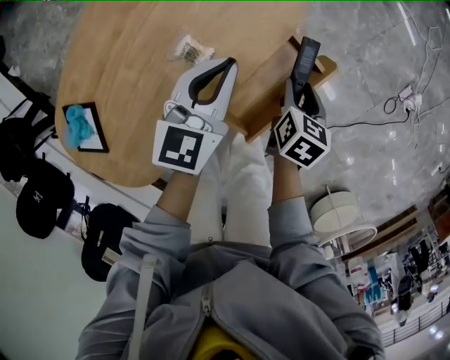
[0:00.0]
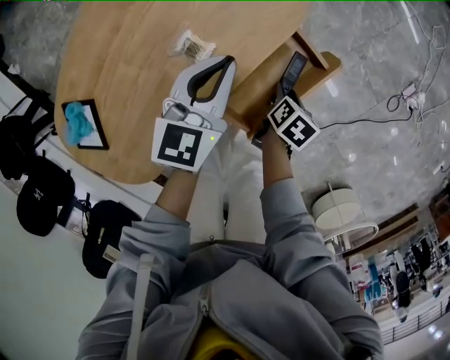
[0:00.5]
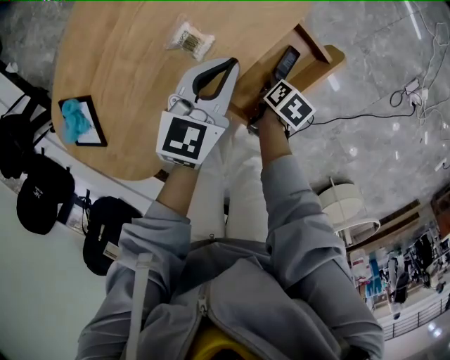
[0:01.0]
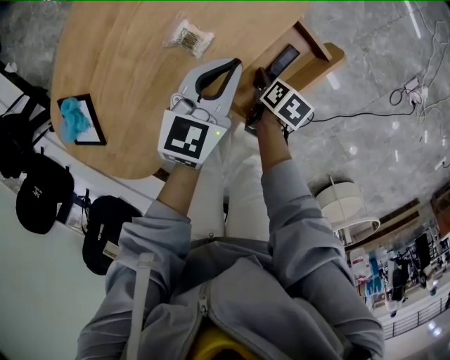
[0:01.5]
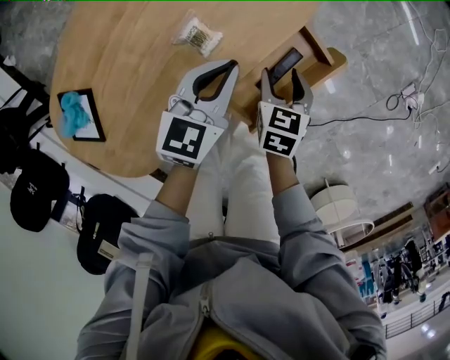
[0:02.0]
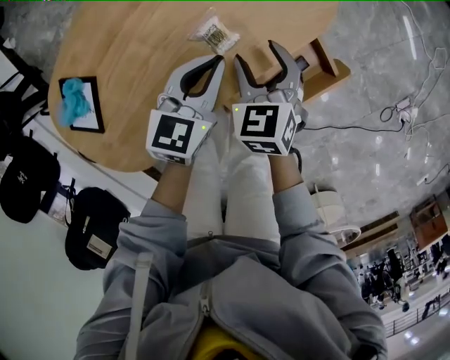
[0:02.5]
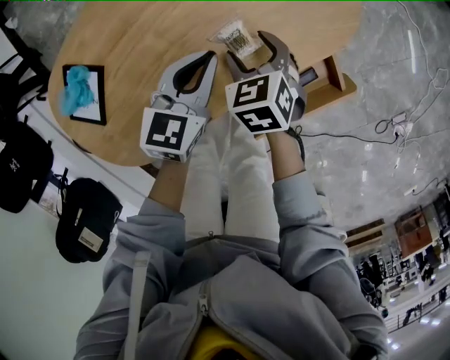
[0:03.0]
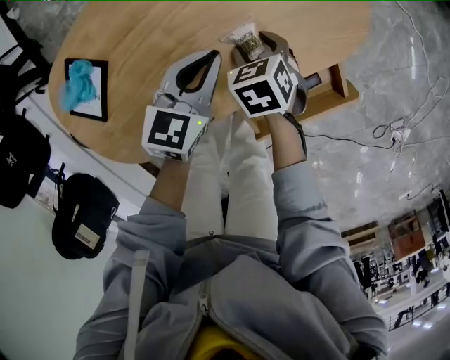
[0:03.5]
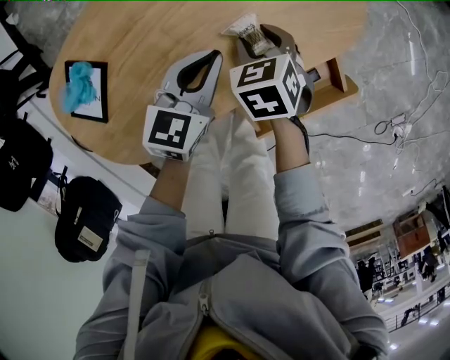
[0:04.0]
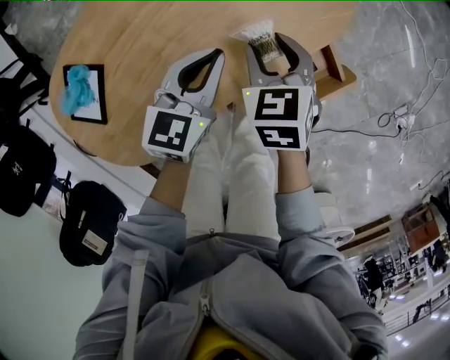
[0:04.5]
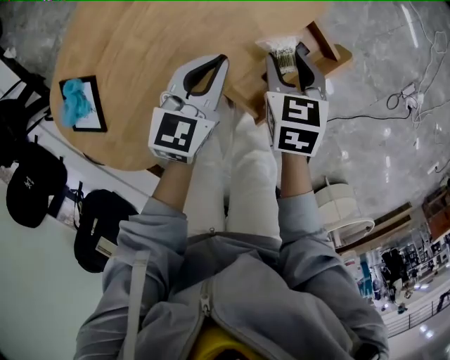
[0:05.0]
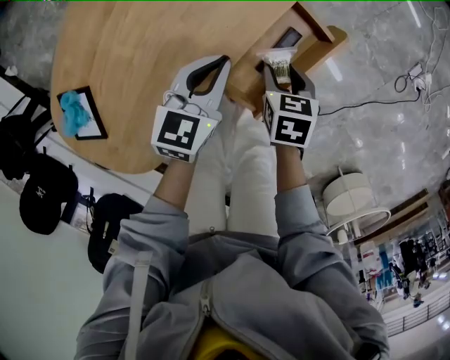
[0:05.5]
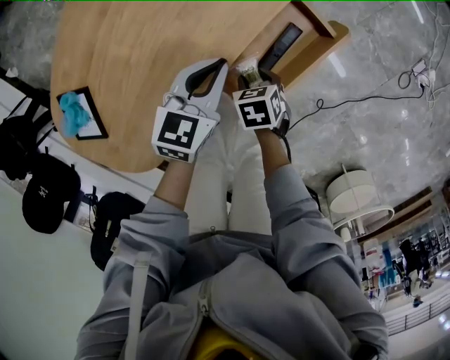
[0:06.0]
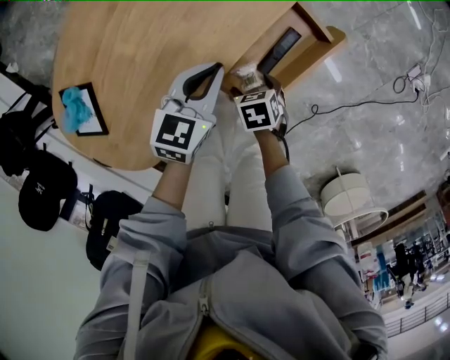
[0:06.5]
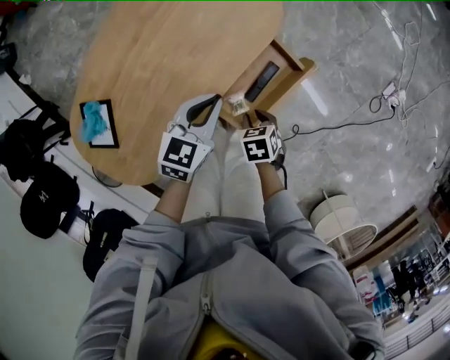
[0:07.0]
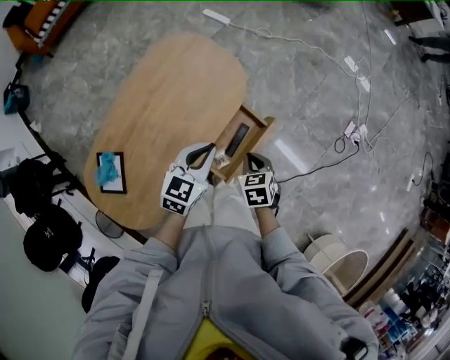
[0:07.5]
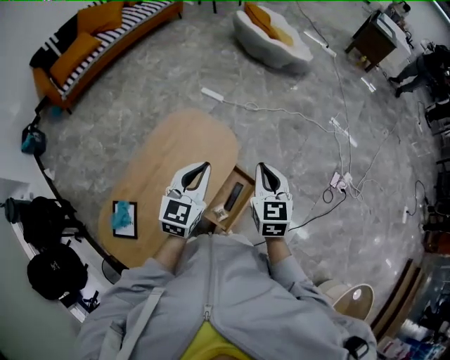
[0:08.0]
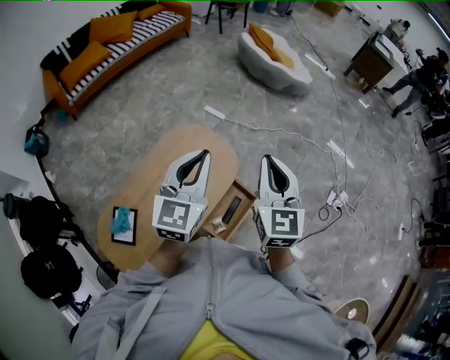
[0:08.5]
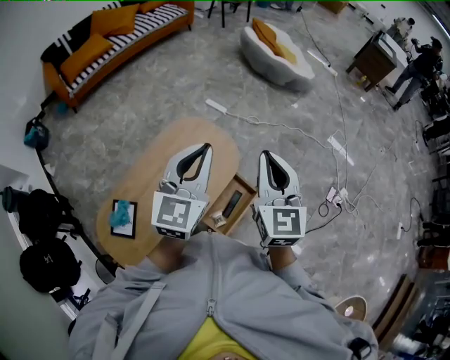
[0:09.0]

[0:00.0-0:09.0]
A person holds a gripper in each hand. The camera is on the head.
0:00.0 to 0:02.0: The right gripper goes downward and returns, about 15 cm each way, and turns by about 20 degrees; the left gripper shifts by about 5 cm.
0:02.0 to 0:04.5: The left gripper shifts by about 10 cm. Meanwhile the right gripper goes up and down, approximately 10 cm each way, reversing 2 times, and rotates about 30 degrees.
0:04.5 to 0:07.0: The left gripper ends up approximately 15 cm from where it was, while the right gripper moves roughly 15 cm downward and comes back, rotates approximately 30 degrees, and opens and closes again.
0:07.0 to 0:09.0: The grippers both shift upward by some 60 cm. The right gripper tilts its fingers approximately 70 degrees upward. Meanwhile the left gripper tilts its fingers some 30 degrees upward.

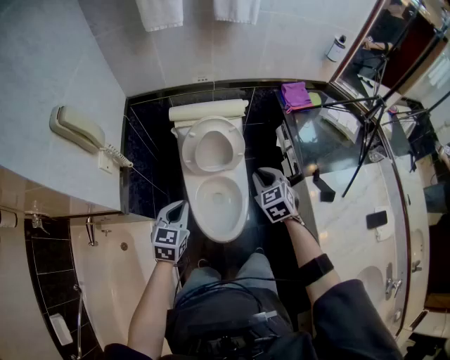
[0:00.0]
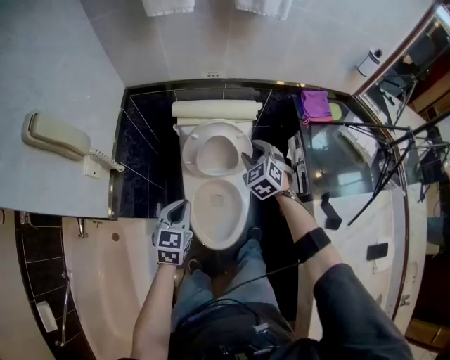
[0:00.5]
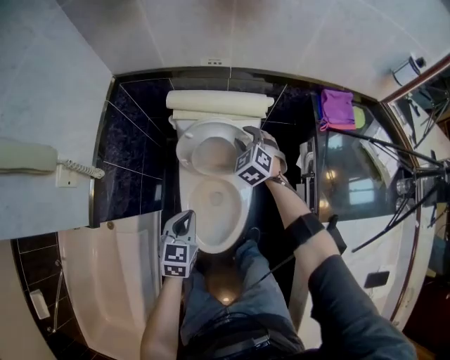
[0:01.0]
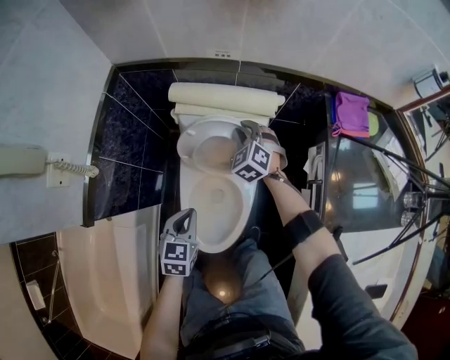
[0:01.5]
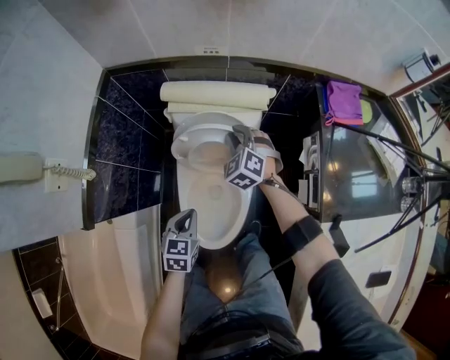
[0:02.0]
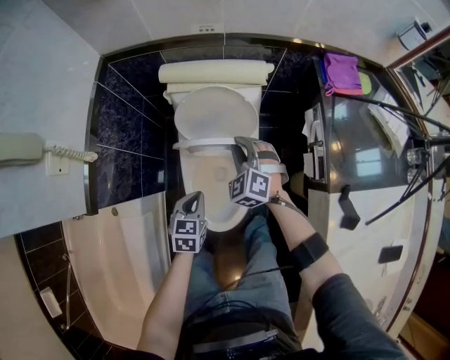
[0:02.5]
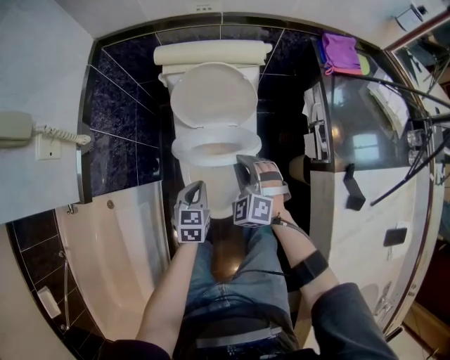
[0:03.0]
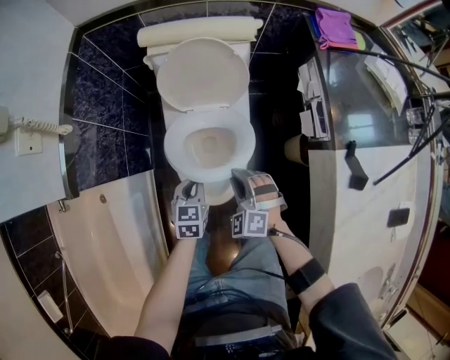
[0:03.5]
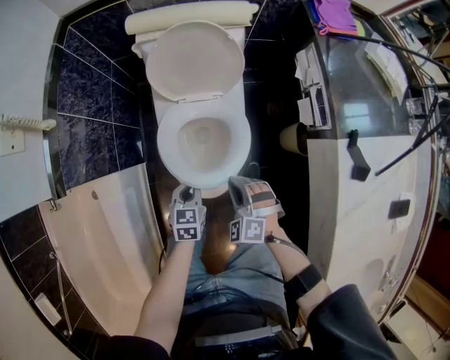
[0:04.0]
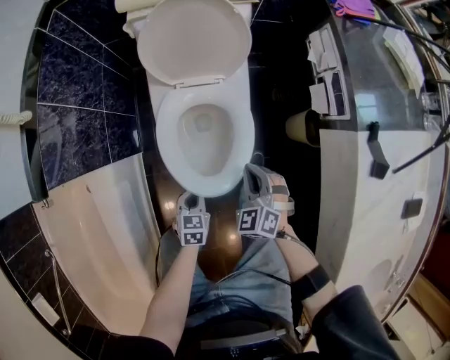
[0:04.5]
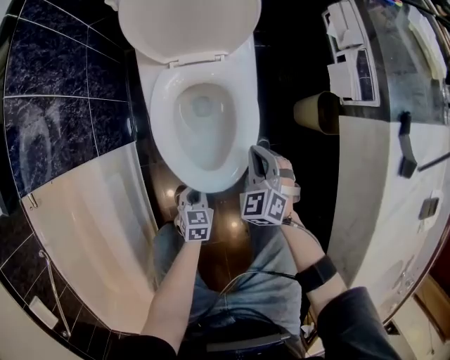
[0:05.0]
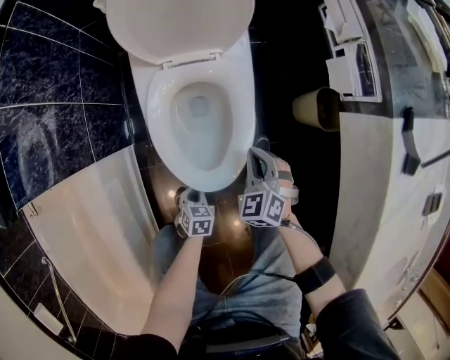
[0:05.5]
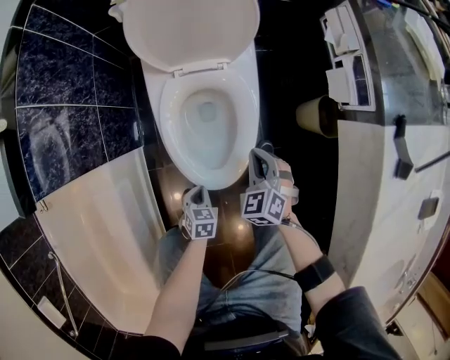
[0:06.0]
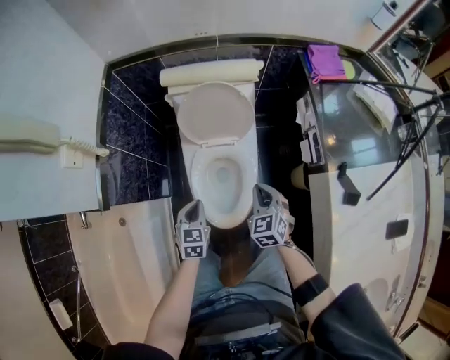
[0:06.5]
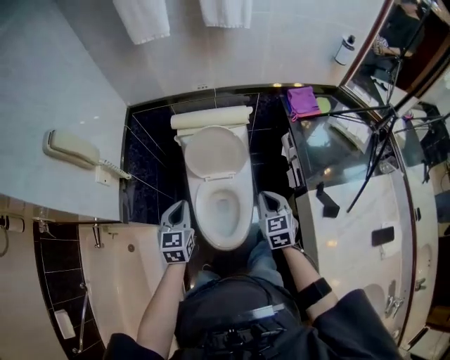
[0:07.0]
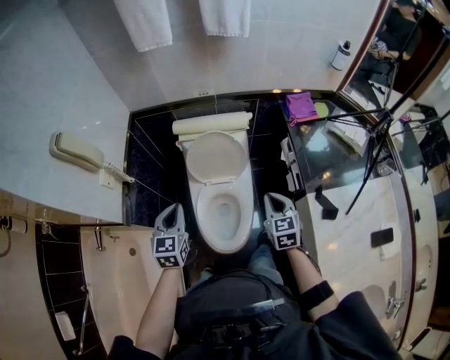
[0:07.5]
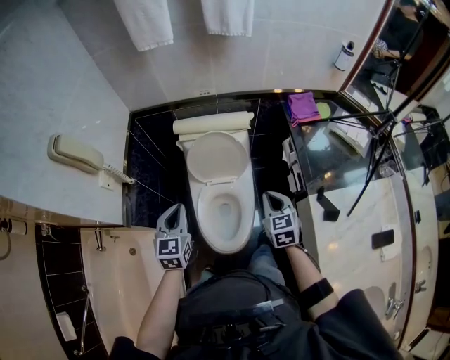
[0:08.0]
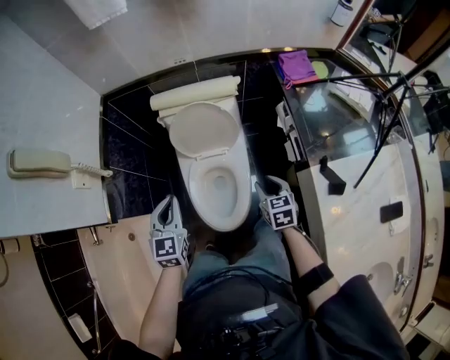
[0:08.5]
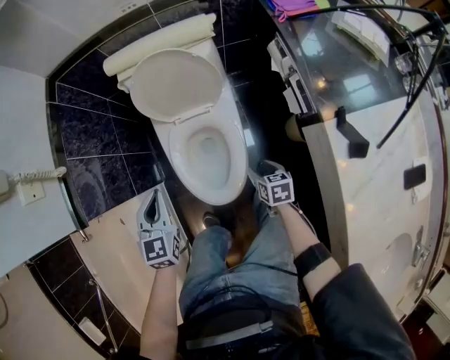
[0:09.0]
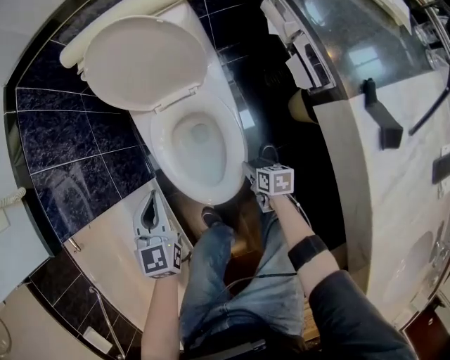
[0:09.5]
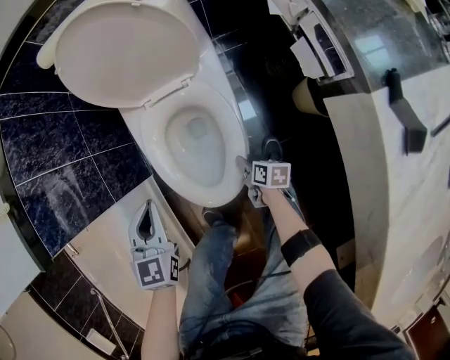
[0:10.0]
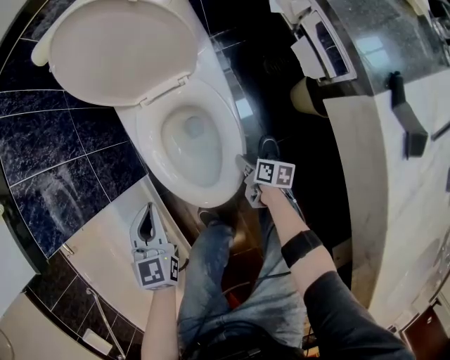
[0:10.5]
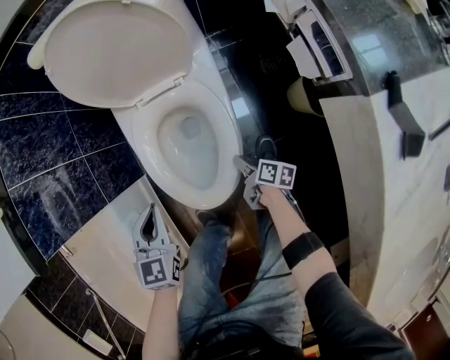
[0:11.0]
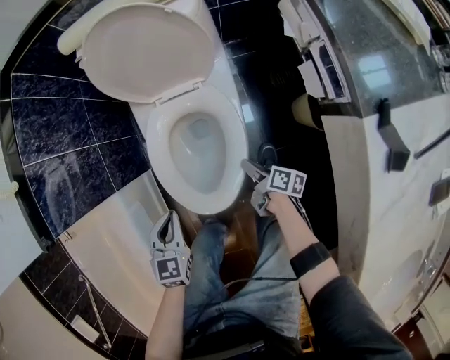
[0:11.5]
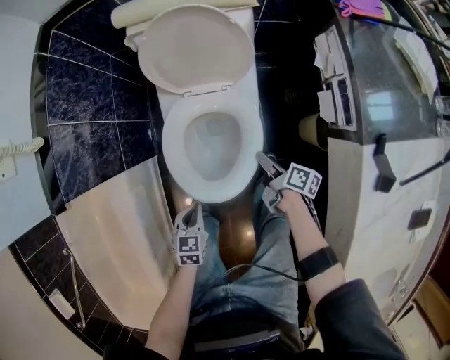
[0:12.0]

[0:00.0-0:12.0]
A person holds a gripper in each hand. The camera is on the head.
0:00.0 to 0:02.0: The left gripper moves downward, forward and to the right, roughly 20 cm, and changes its angle by some 20 degrees; the right gripper heads forward and downward, covering about 35 cm, turns by approximately 30 degrees, and opens, then closes once more.
0:02.0 to 0:04.0: The left gripper shifts about 20 cm downward and backward. The right gripper shifts some 40 cm backward.
0:04.0 to 0:06.0: The left gripper is displaced downward and backward by about 25 cm. Meanwhile the right gripper shifts some 15 cm downward, and changes its angle by approximately 30 degrees.
0:06.0 to 0:08.0: Both grippers travel together upward, roughly 50 cm. The left gripper tips its fingers upward by some 40 degrees. The right gripper changes its angle by approximately 30 degrees.
0:08.0 to 0:10.0: The left gripper moves downward, roughly 35 cm. The right gripper shifts approximately 60 cm downward, twists some 60 degrees clockwise, seen from behind, and opens its fingers.
0:10.0 to 0:12.0: The right gripper is displaced upward by about 20 cm; the left gripper heads backward and downward, covering some 15 cm, and swivels about 20 degrees.

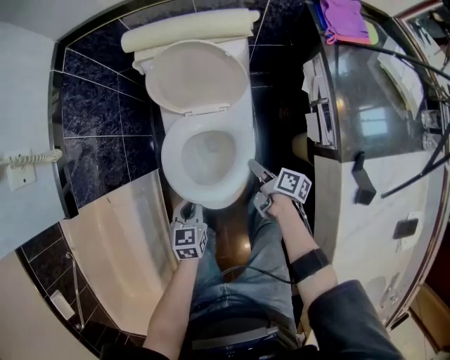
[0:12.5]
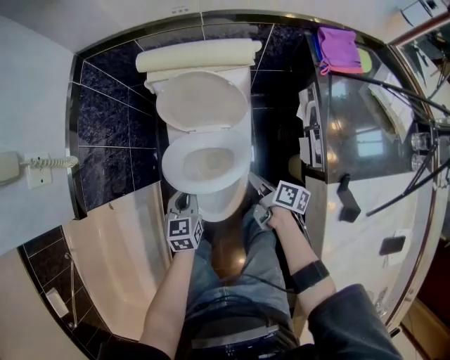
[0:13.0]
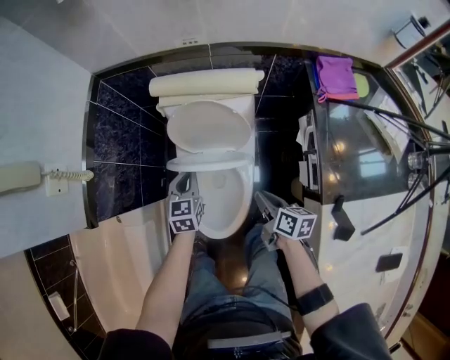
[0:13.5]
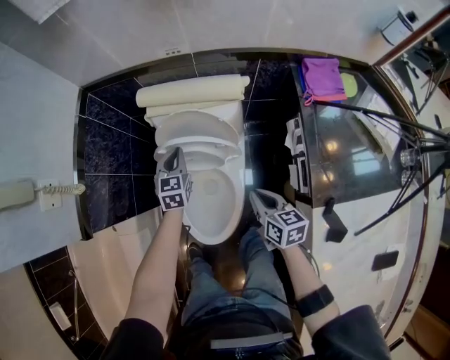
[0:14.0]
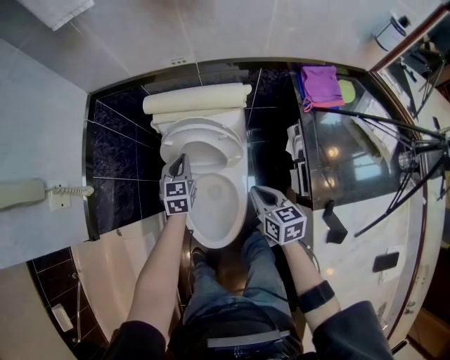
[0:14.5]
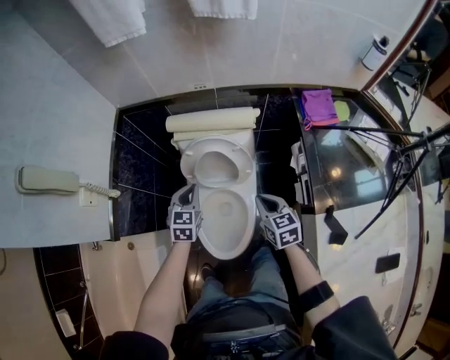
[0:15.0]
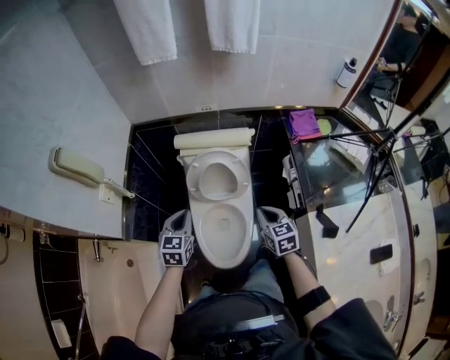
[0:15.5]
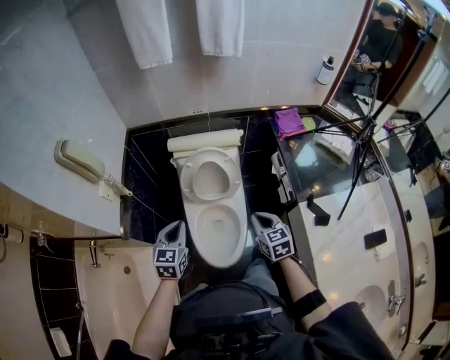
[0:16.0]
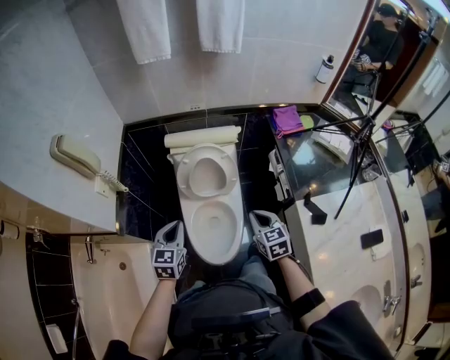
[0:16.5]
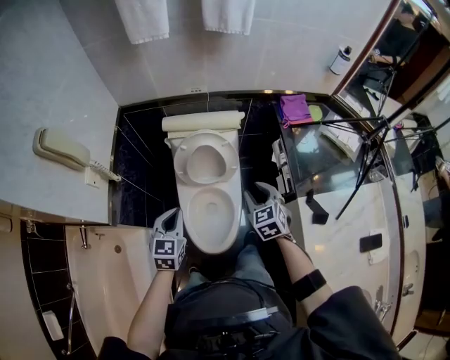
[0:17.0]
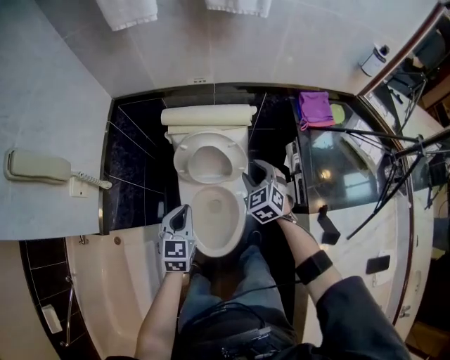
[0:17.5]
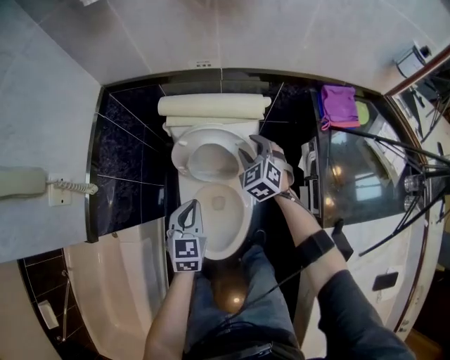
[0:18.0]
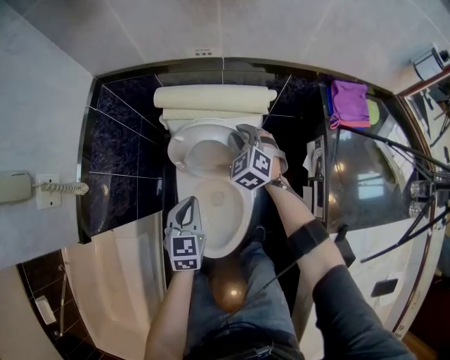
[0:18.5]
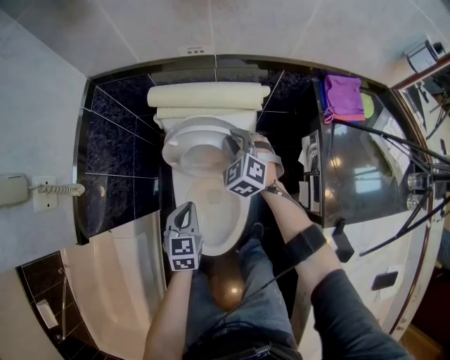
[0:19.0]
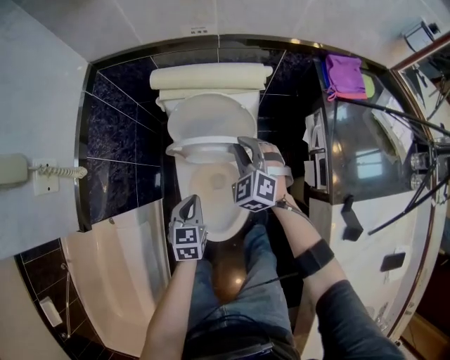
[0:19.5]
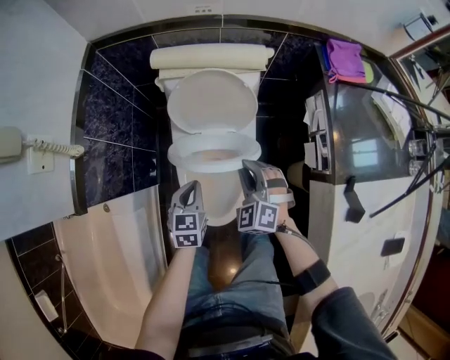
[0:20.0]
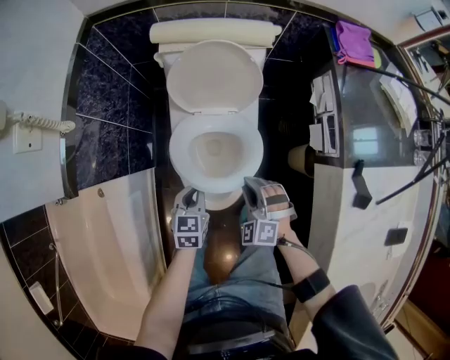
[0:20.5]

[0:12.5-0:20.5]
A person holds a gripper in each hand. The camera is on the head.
0:12.5 to 0:14.5: The left gripper goes about 30 cm forward and upward. Meanwhile the right gripper shifts roughly 25 cm upward and forward, rolls counterclockwise, seen from behind, by roughly 60 degrees, and closes its fingers.
0:14.5 to 0:16.5: The left gripper heads backward, upward and to the left, covering some 35 cm. The right gripper travels backward and upward by some 20 cm, and turns by about 20 degrees.
0:16.5 to 0:18.5: The right gripper is displaced forward and downward by roughly 40 cm, twists approximately 40 degrees counterclockwise, seen from behind, and opens and closes again; the left gripper heads downward, forward and to the right, covering some 25 cm.
0:18.5 to 0:20.5: The left gripper goes approximately 20 cm backward and downward, while the right gripper moves backward, roughly 35 cm.
